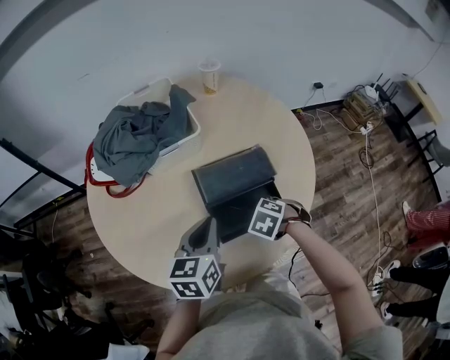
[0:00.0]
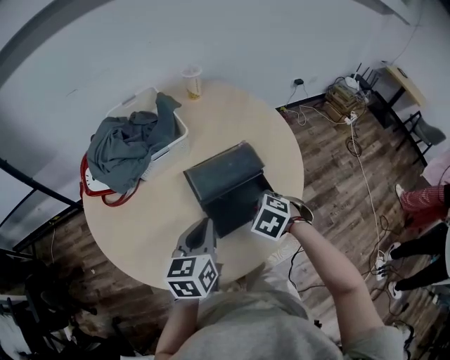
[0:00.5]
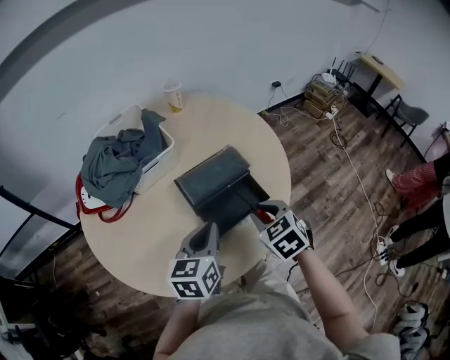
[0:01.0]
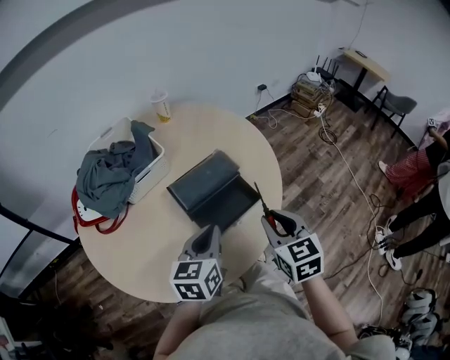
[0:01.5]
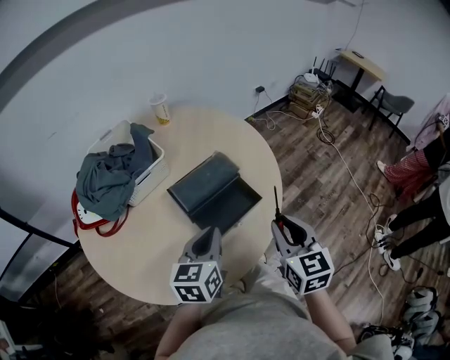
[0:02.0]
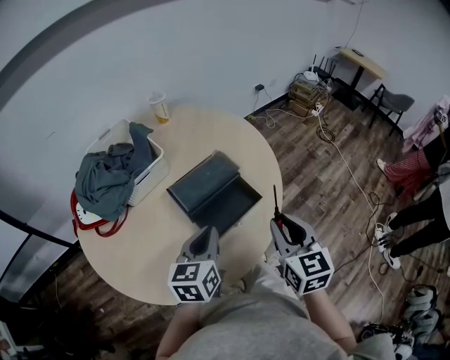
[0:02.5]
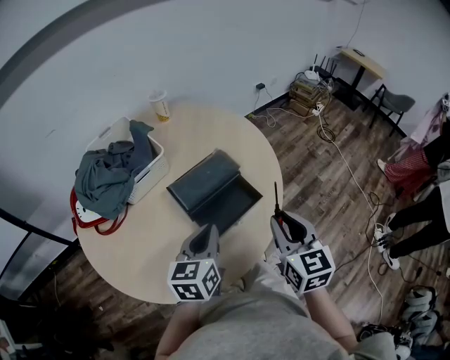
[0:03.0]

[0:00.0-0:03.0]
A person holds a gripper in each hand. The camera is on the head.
0.0 to 1.5 s: The left gripper shifts by roughly 10 cm, and changes its angle by some 20 degrees. Meanwhile the right gripper moves upward, approximately 20 cm, and tilts its fingers roughly 50 degrees upward.
1.5 to 3.0 s: The grippers make only small movements.

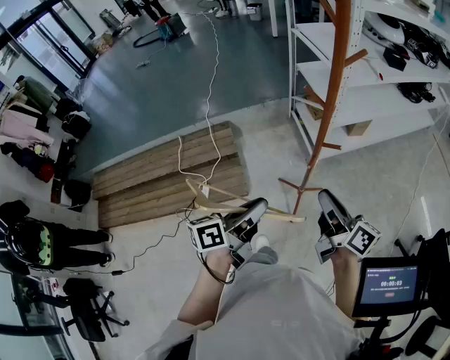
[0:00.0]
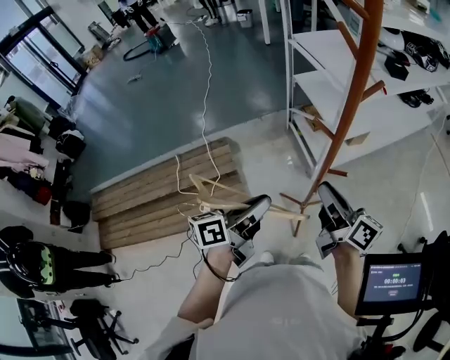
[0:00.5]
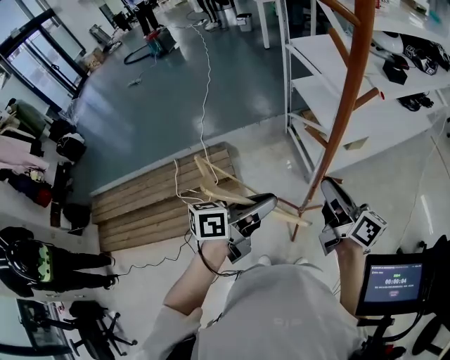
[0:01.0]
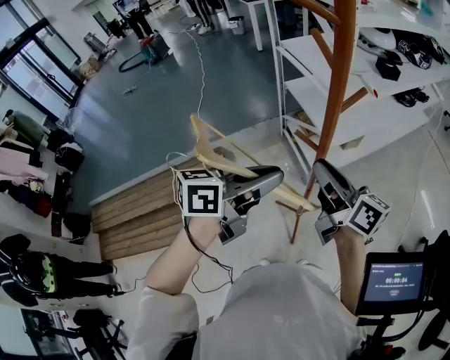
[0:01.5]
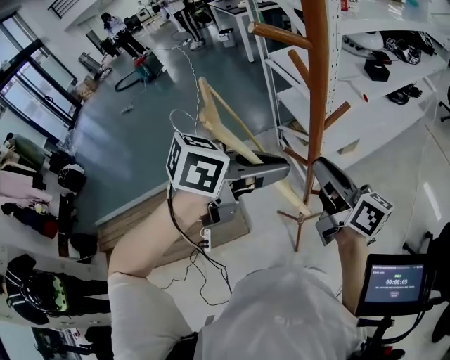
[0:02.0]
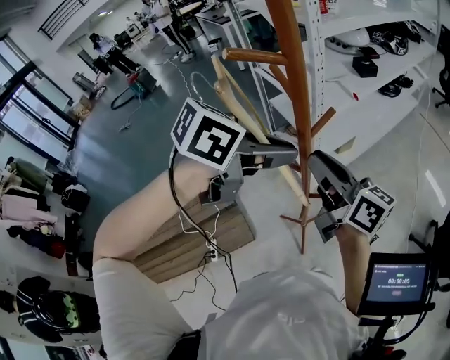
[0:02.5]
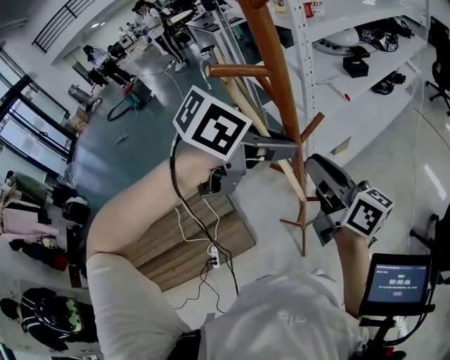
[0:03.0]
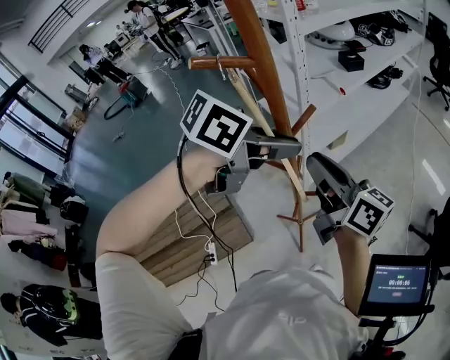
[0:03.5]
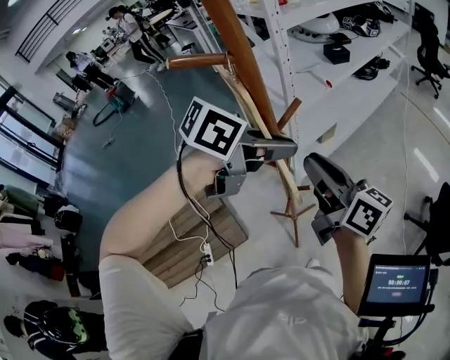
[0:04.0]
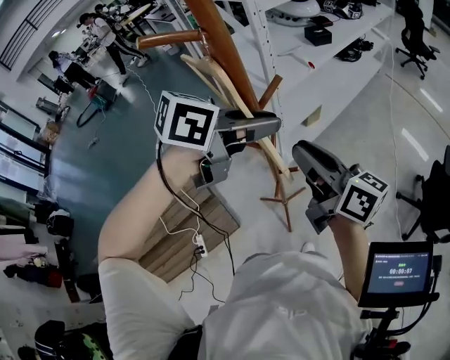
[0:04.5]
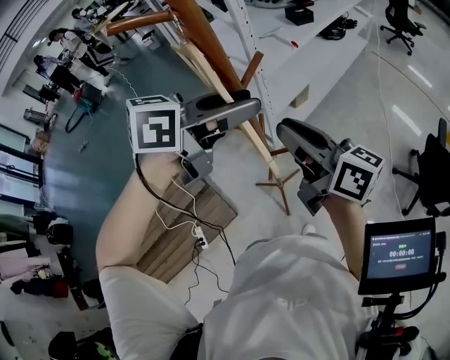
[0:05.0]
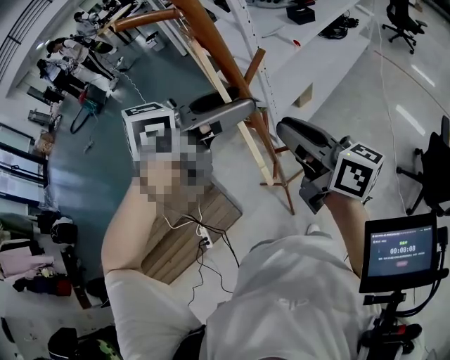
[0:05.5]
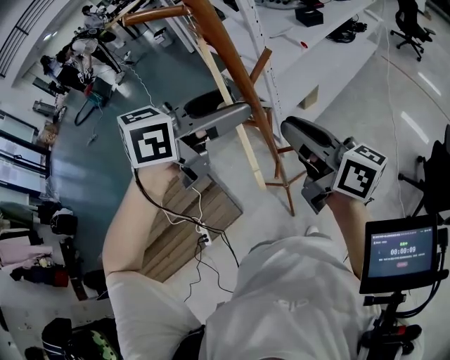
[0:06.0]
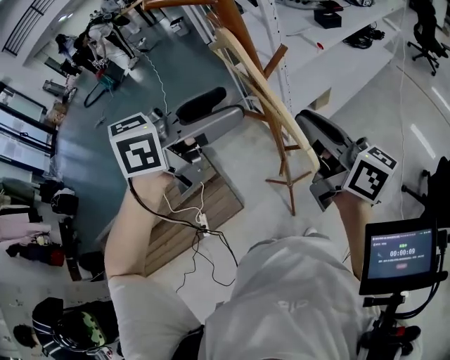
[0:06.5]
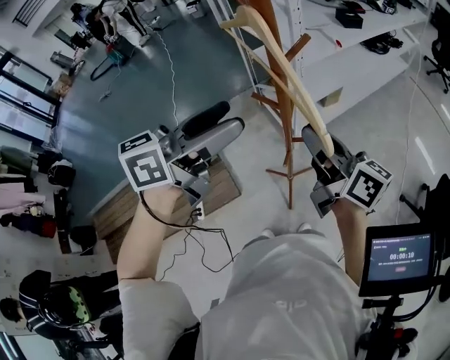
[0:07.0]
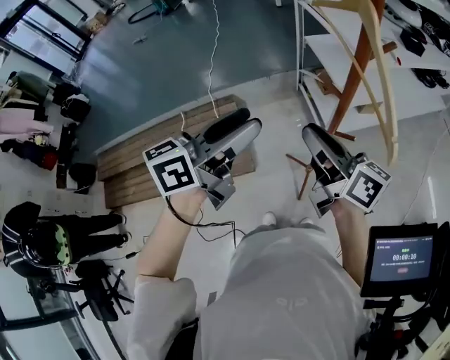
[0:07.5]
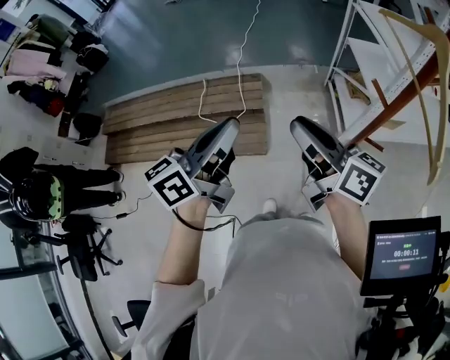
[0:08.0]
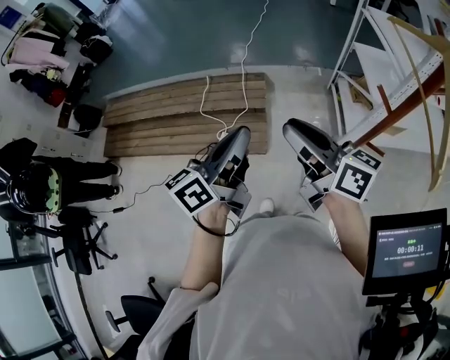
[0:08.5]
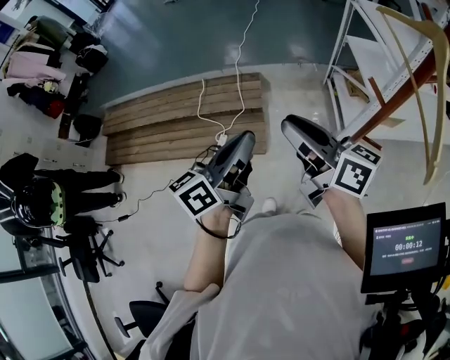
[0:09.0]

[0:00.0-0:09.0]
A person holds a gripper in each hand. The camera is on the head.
0.0 to 2.0 s: The grippers both shift forward and upward by approximately 25 cm. The left gripper swivels roughly 50 degrees.
2.0 to 4.5 s: The right gripper heads to the right, covering some 5 cm, while the left gripper is displaced forward and to the right by roughly 10 cm.
4.5 to 7.0 s: The right gripper ends up some 5 cm from where it was. The left gripper is displaced backward and to the left by some 15 cm, turns by some 40 degrees, and opens.
7.0 to 9.0 s: The right gripper changes place by about 30 cm, and changes its angle by some 40 degrees. The left gripper shifts by some 30 cm, changes its angle by some 50 degrees, and closes.

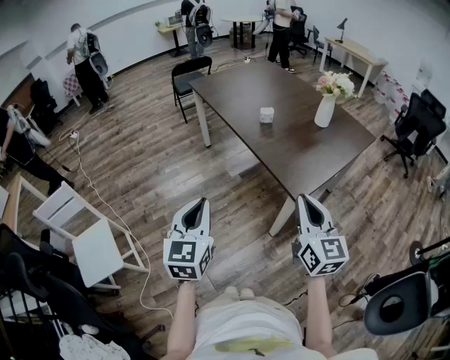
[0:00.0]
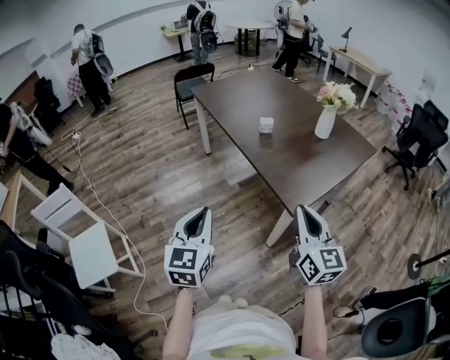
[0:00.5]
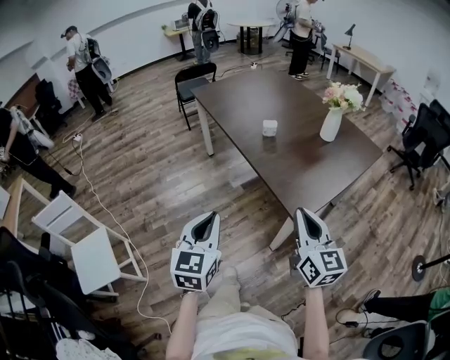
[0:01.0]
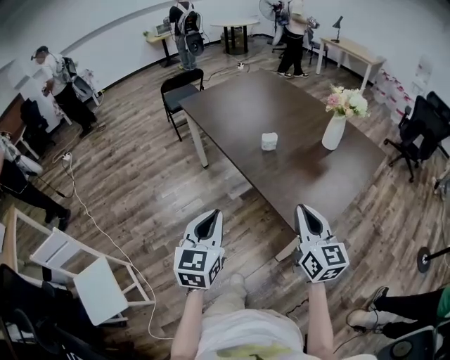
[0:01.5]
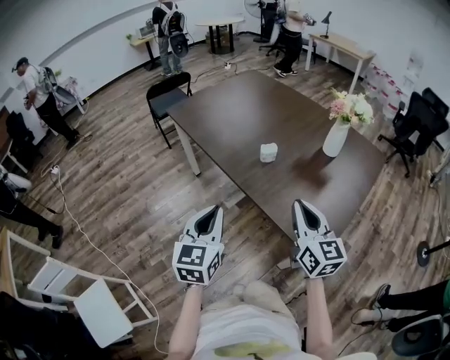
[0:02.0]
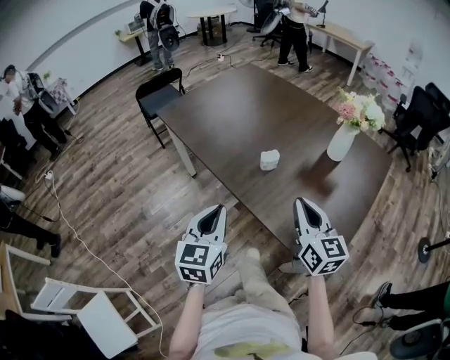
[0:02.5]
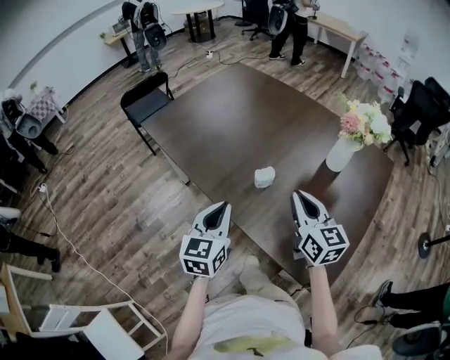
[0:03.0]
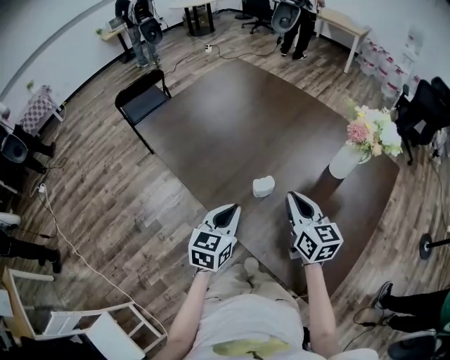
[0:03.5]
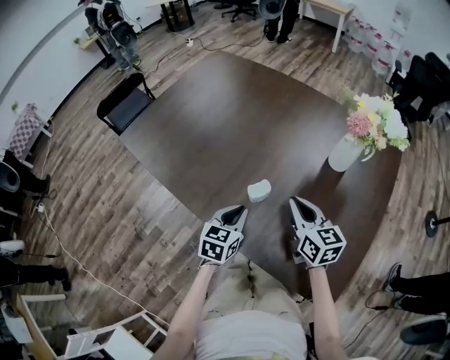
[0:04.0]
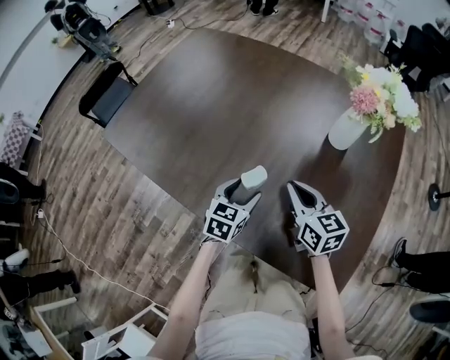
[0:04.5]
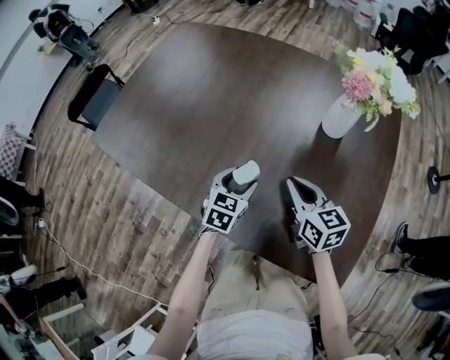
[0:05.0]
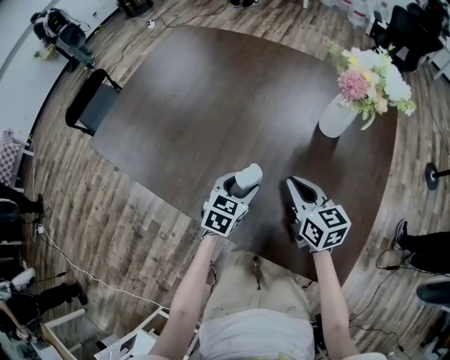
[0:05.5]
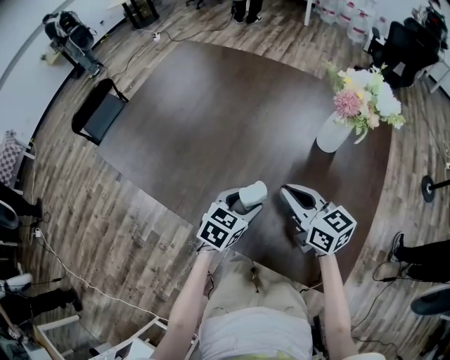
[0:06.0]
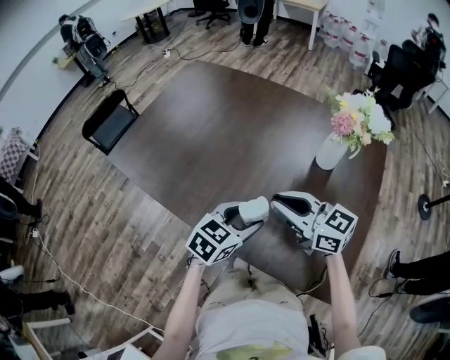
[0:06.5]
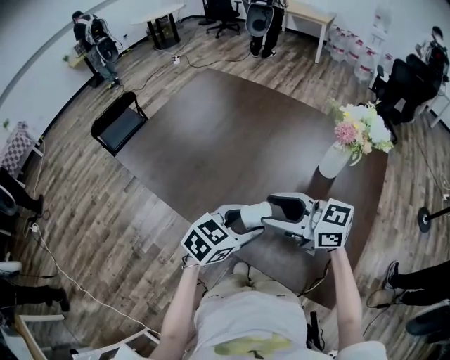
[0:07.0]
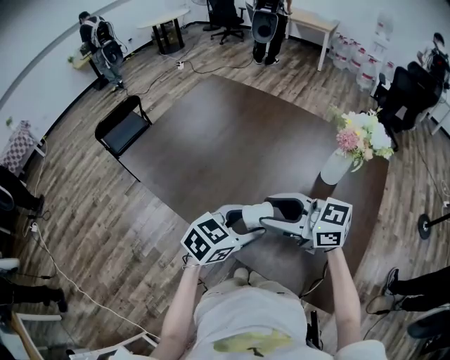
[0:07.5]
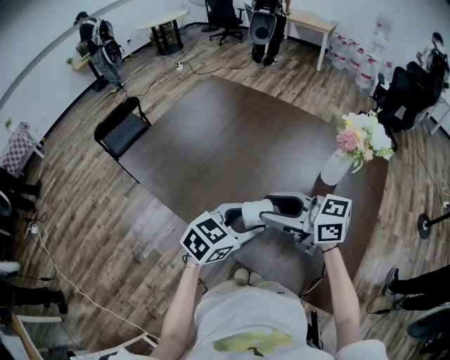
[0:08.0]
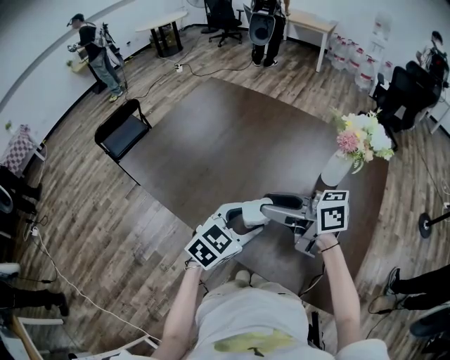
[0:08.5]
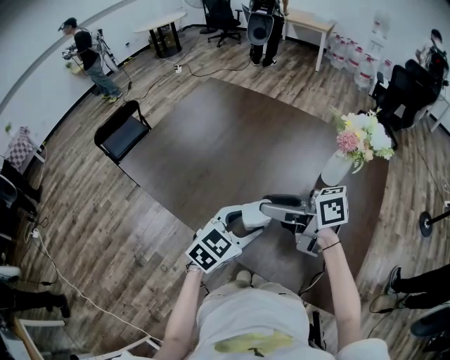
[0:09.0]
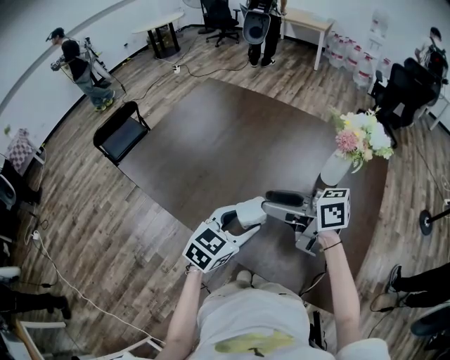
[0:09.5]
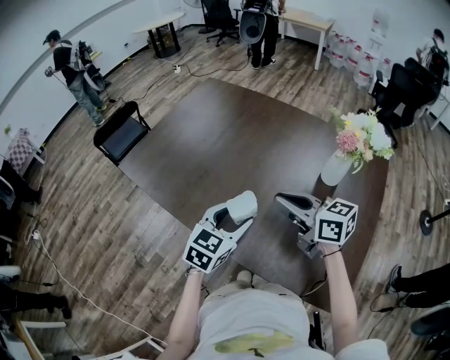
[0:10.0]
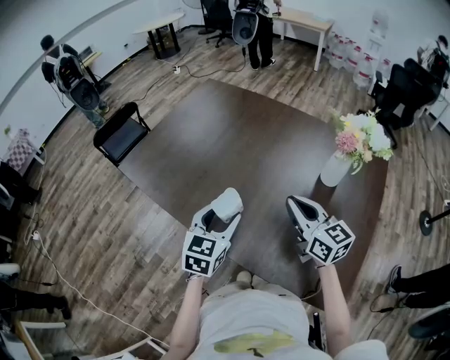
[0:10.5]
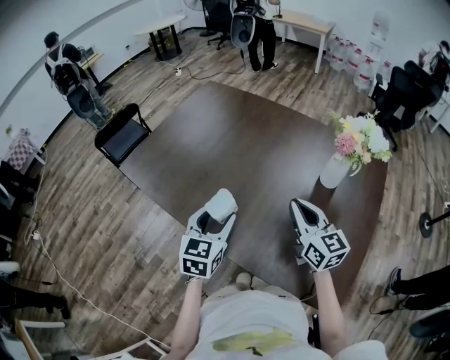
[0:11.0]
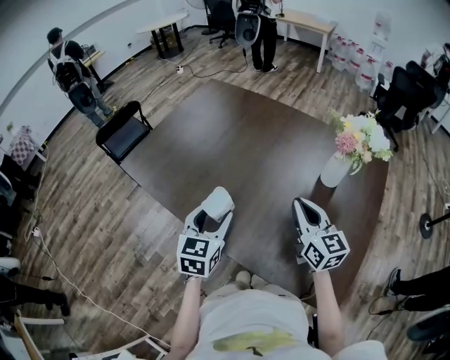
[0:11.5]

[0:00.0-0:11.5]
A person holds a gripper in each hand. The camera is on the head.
0.0 to 2.0 s: Both grippers move forward, roughly 25 cm.
2.0 to 4.0 s: The two grippers go about 30 cm forward and downward. The left gripper rotates approximately 30 degrees.
4.0 to 6.0 s: The left gripper is displaced to the right by approximately 5 cm, changes its angle by about 20 degrees, and opens up.
6.0 to 7.5 s: Both grippers travel together upward, approximately 10 cm. The right gripper rotates about 40 degrees, and opens.
7.5 to 9.5 s: The right gripper swivels some 30 degrees.
9.5 to 11.5 s: The right gripper is displaced to the right by approximately 10 cm, swivels some 50 degrees, and closes. Meanwhile the left gripper is displaced to the left by about 10 cm, and turns by approximately 30 degrees.

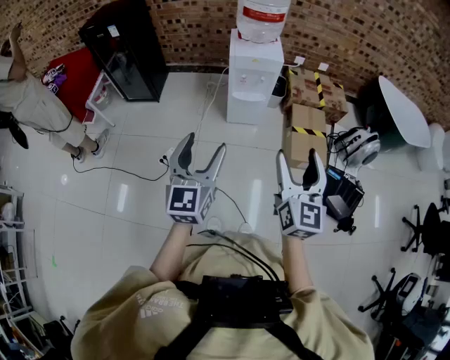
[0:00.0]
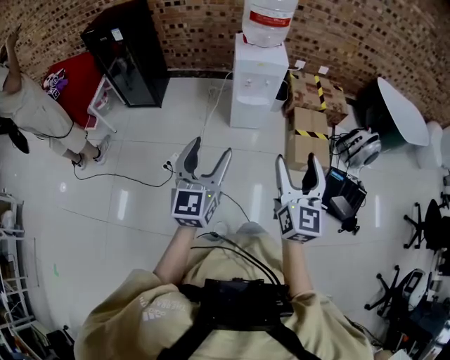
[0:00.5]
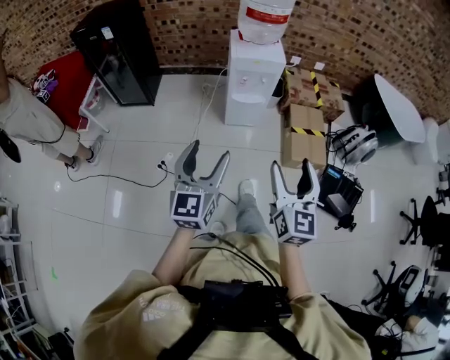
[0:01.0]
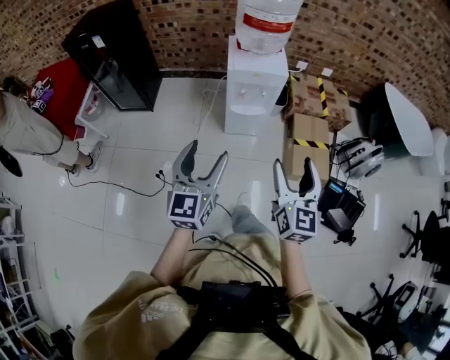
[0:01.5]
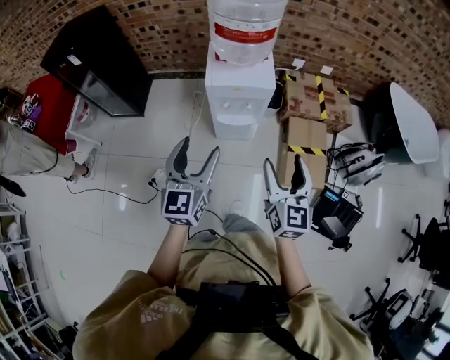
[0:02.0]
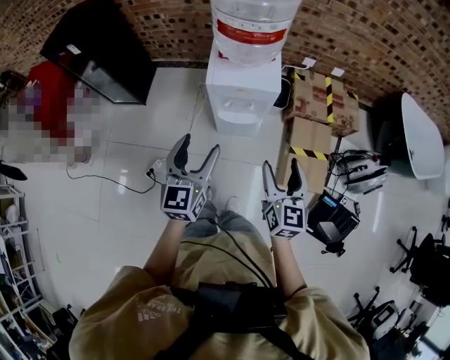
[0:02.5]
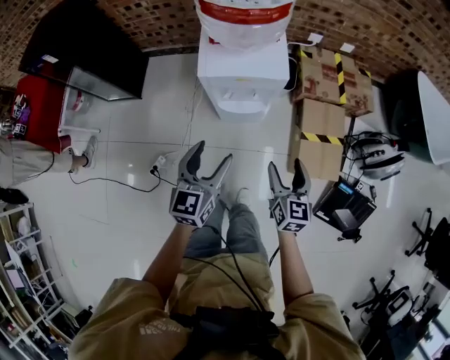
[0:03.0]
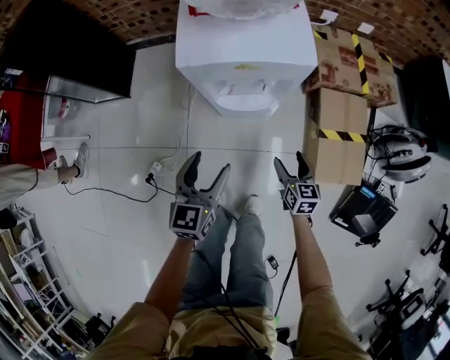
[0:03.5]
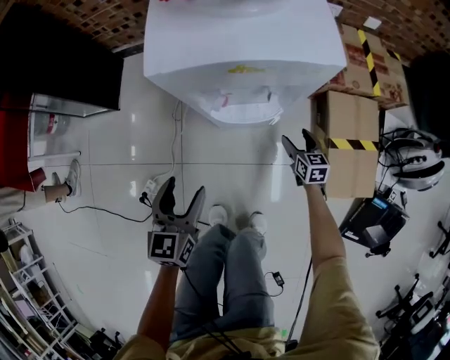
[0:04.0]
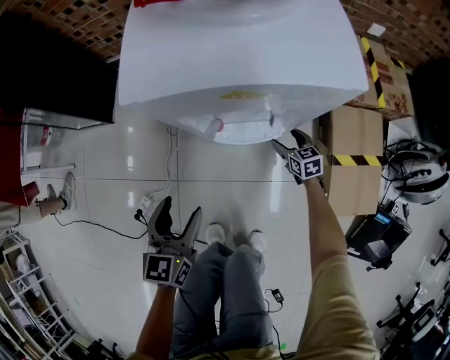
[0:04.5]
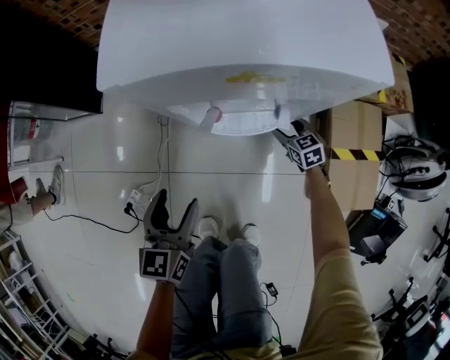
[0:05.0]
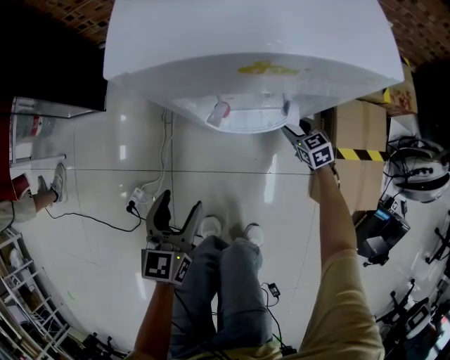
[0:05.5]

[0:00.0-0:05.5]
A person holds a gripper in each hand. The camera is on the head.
0.0 to 2.0 s: Both grippers move forward, some 30 cm.
2.0 to 3.5 s: Both grippers travel together downward, some 40 cm. The right gripper swivels some 30 degrees.
3.5 to 5.5 s: The left gripper goes some 15 cm downward and to the left; the right gripper goes about 30 cm downward and forward, and changes its angle by roughly 30 degrees.
